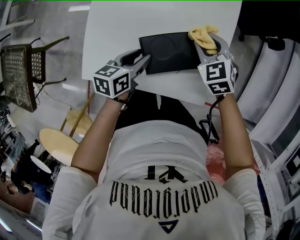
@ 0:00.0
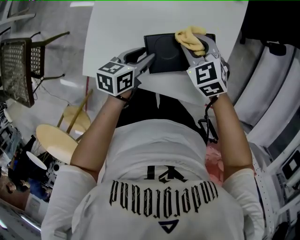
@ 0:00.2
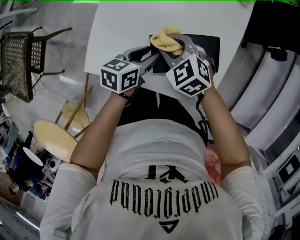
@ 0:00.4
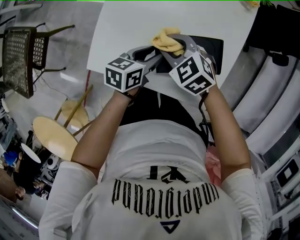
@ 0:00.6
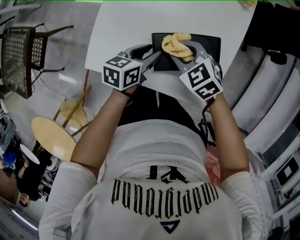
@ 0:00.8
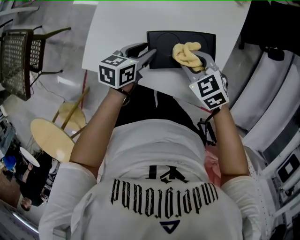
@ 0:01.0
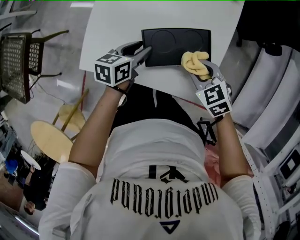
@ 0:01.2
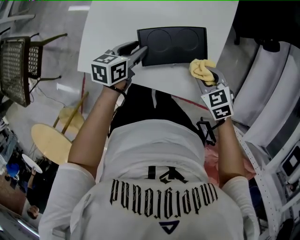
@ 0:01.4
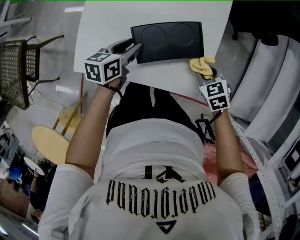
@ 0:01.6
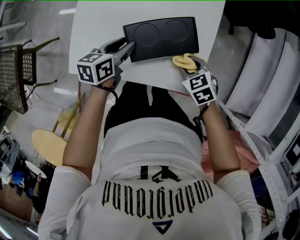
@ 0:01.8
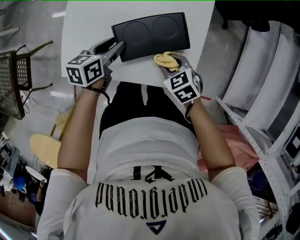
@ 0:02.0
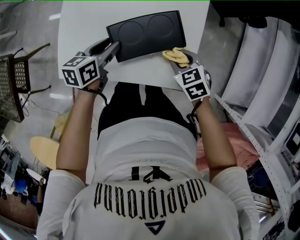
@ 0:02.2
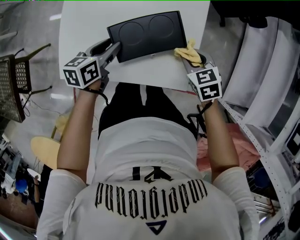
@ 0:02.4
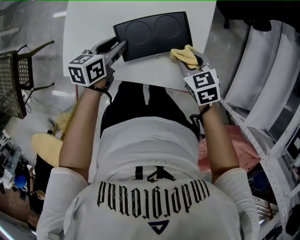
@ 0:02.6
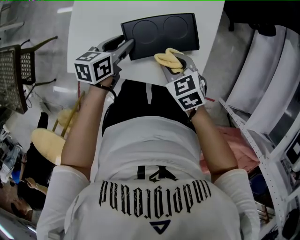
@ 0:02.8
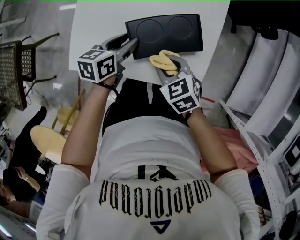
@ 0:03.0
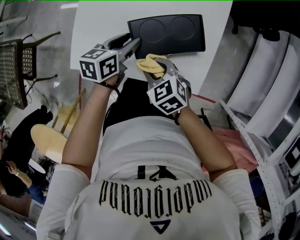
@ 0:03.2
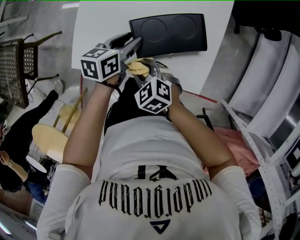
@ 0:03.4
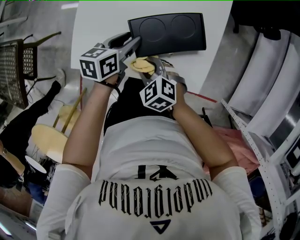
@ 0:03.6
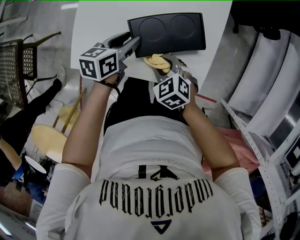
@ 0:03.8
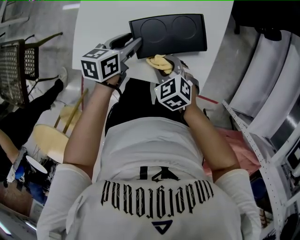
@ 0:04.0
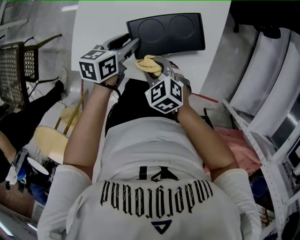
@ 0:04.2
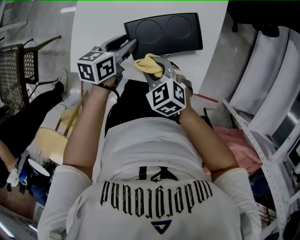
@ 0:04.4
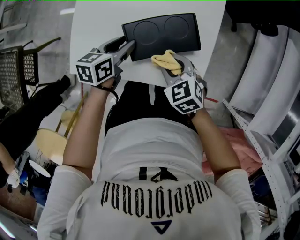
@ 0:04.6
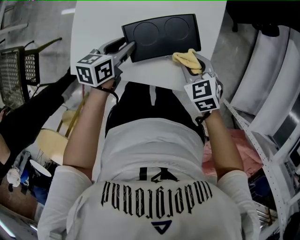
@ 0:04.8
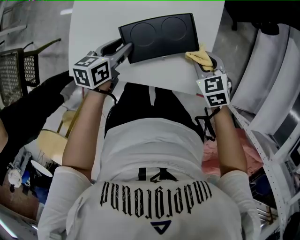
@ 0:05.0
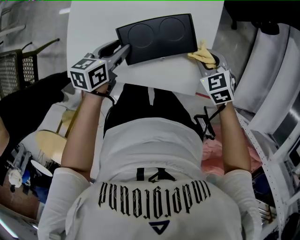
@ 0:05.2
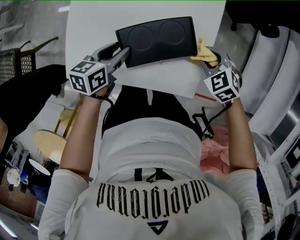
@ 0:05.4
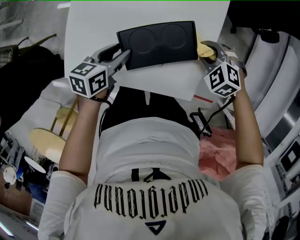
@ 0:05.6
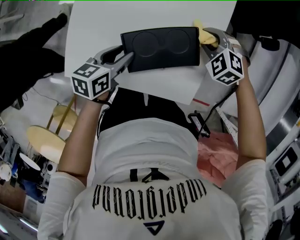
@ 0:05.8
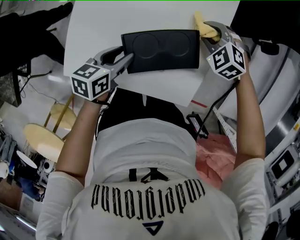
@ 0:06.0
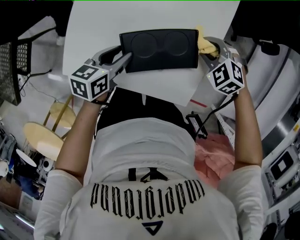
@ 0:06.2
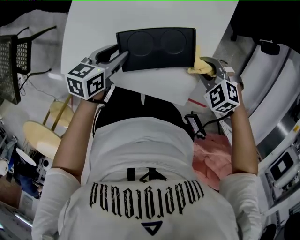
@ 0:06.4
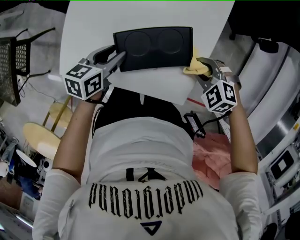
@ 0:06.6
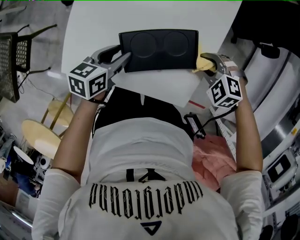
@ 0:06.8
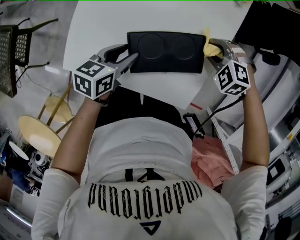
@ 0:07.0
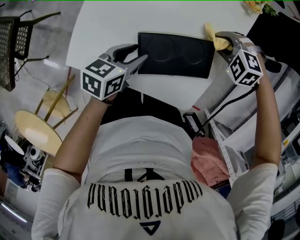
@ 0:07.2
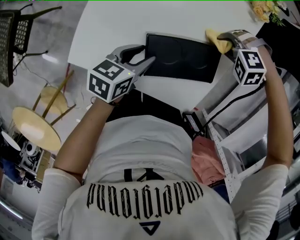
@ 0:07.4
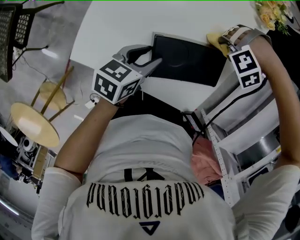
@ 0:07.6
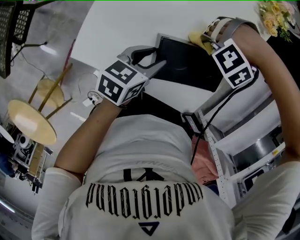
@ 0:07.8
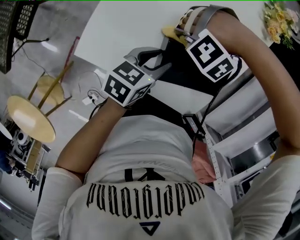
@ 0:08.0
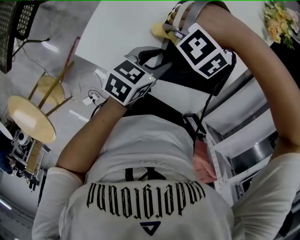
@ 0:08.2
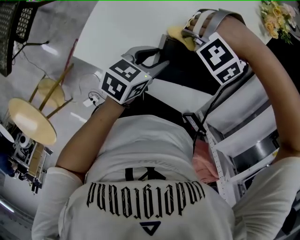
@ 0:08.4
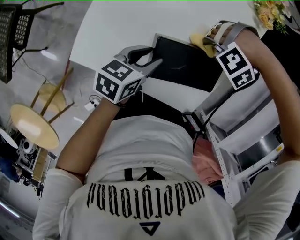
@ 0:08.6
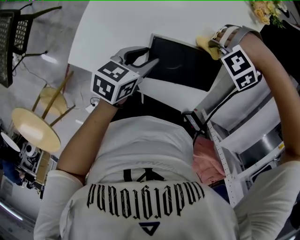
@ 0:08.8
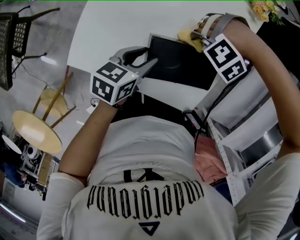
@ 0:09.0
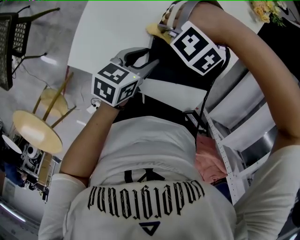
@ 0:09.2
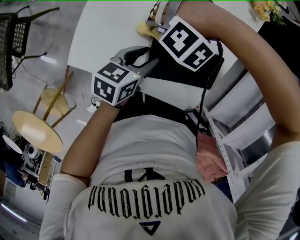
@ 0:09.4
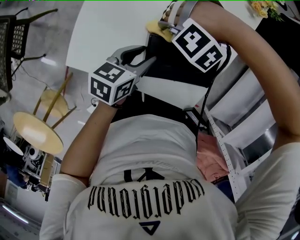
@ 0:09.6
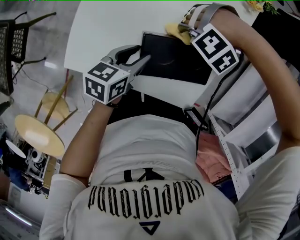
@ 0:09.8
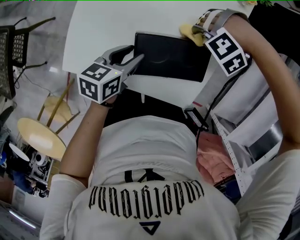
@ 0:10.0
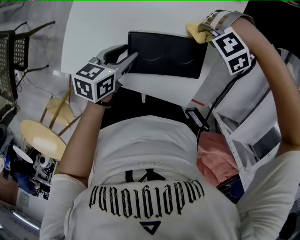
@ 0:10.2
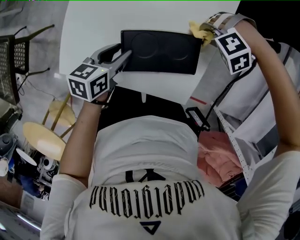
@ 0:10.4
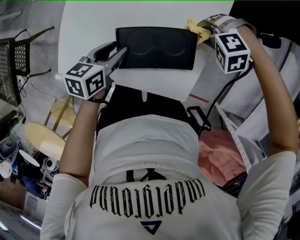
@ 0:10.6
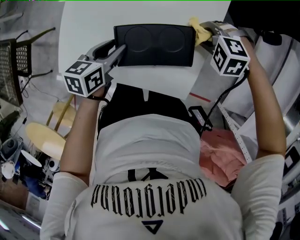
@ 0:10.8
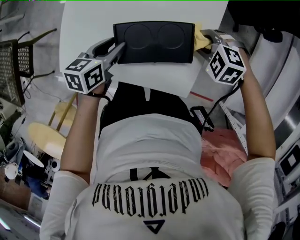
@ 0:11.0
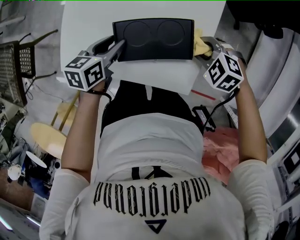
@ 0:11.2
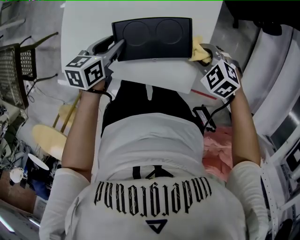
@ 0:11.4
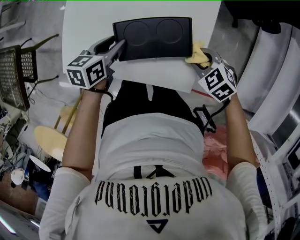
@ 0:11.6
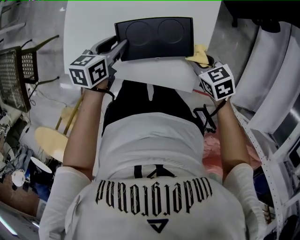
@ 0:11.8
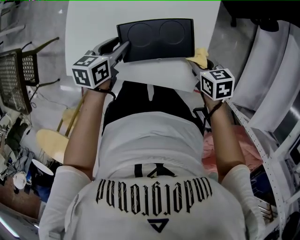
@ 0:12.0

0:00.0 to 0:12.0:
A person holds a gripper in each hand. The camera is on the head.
0:00.0 to 0:01.6: The right gripper is displaced backward by roughly 15 cm, and travels to the left and back again, approximately 15 cm each way.
0:01.6 to 0:03.0: The right gripper goes left and right, some 15 cm each way, reversing 2 times.
0:04.4 to 0:06.0: The right gripper heads forward and to the right, covering roughly 30 cm, and swivels about 30 degrees.
0:06.0 to 0:07.6: The right gripper twists about 70 degrees counterclockwise, seen from behind, while the left gripper shifts by roughly 10 cm.
0:09.0 to 0:10.4: The left gripper shifts by approximately 5 cm, while the right gripper rotates some 20 degrees.
0:10.4 to 0:12.0: The right gripper changes place by approximately 10 cm, and twists approximately 120 degrees clockwise, seen from behind.

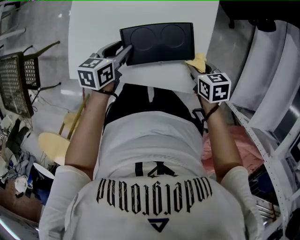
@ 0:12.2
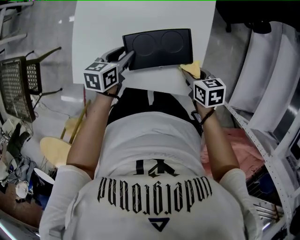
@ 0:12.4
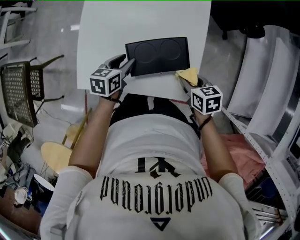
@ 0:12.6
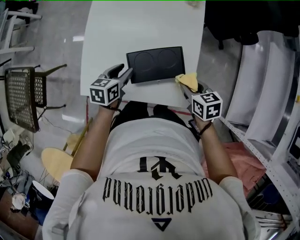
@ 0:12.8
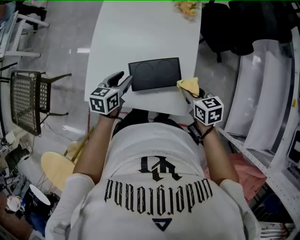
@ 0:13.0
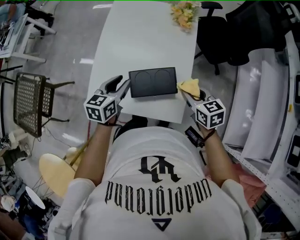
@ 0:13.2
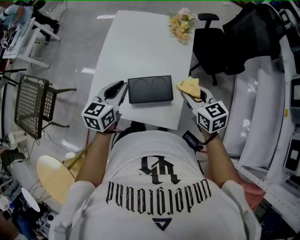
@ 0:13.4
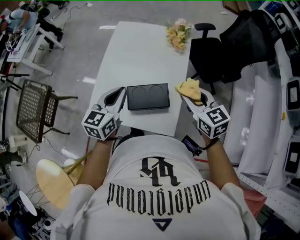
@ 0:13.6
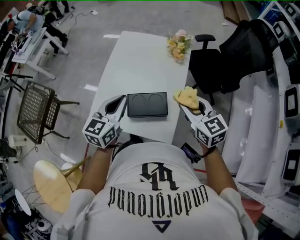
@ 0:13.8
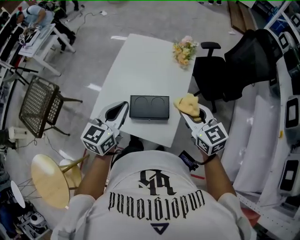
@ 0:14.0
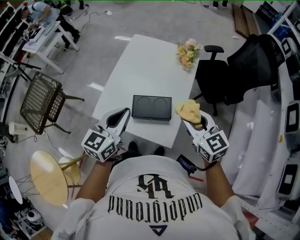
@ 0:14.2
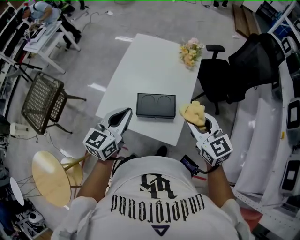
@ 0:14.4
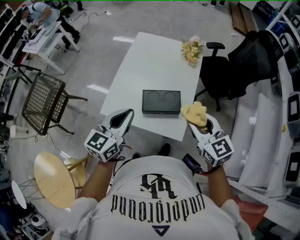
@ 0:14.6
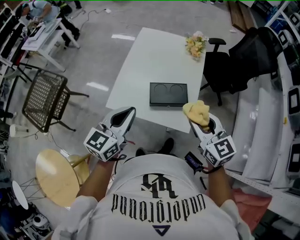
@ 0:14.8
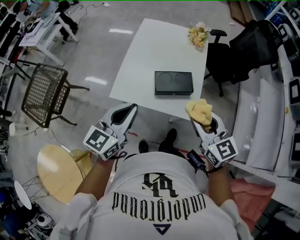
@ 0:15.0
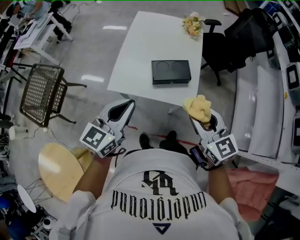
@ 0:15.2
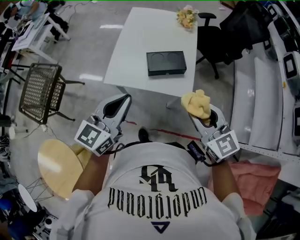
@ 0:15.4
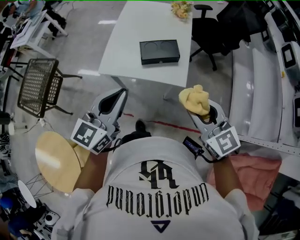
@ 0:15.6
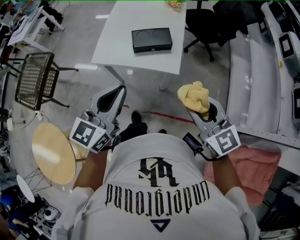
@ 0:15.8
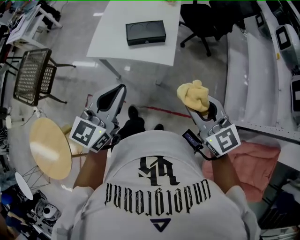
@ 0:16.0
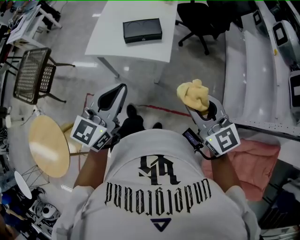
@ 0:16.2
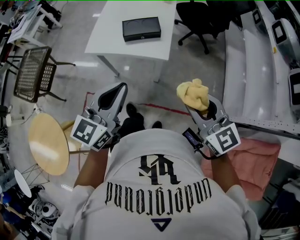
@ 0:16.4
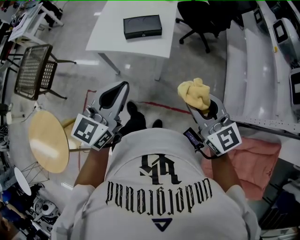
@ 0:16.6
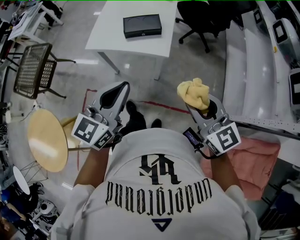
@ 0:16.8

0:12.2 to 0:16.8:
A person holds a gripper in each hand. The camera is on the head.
0:12.2 to 0:13.8: The two grippers go about 35 cm upward. The left gripper changes its angle by approximately 40 degrees, and closes. The right gripper tilts its fingers about 40 degrees upward.
0:13.8 to 0:15.2: Both grippers move backward and to the left, approximately 30 cm.
0:15.2 to 0:16.8: The grippers both shift backward and to the right by approximately 30 cm.

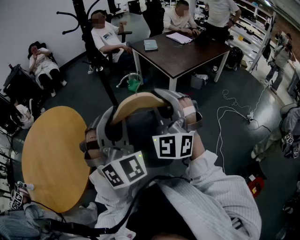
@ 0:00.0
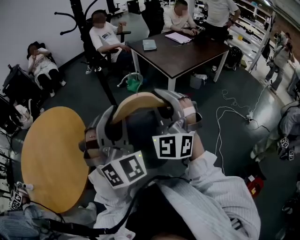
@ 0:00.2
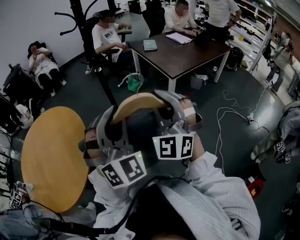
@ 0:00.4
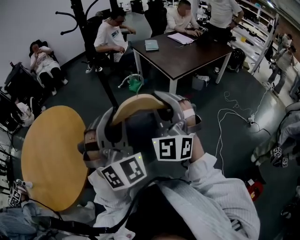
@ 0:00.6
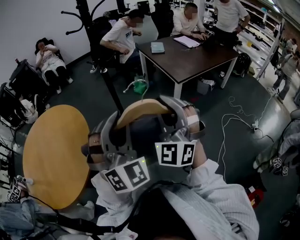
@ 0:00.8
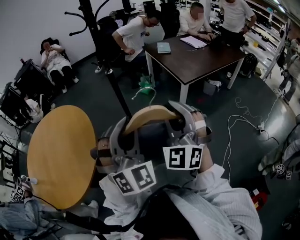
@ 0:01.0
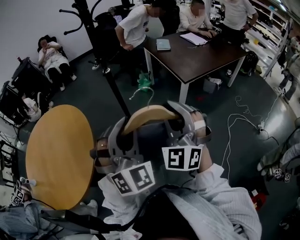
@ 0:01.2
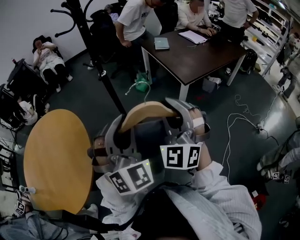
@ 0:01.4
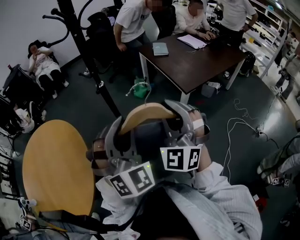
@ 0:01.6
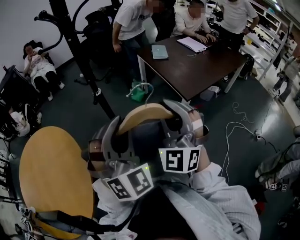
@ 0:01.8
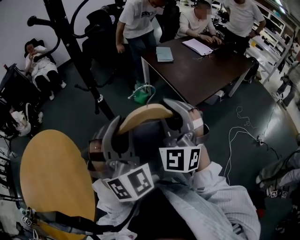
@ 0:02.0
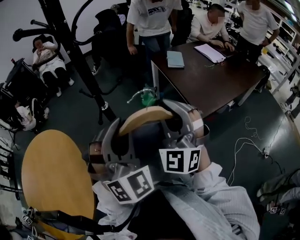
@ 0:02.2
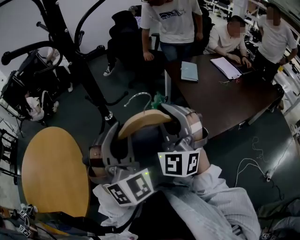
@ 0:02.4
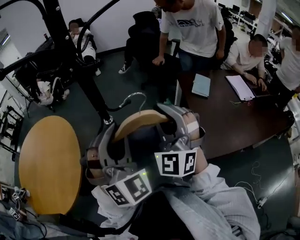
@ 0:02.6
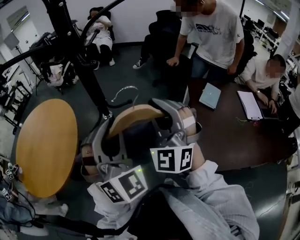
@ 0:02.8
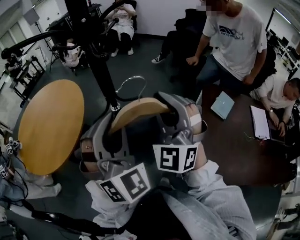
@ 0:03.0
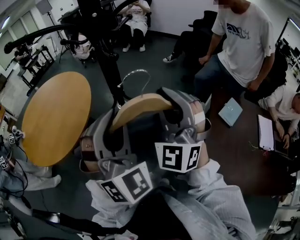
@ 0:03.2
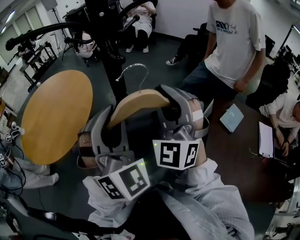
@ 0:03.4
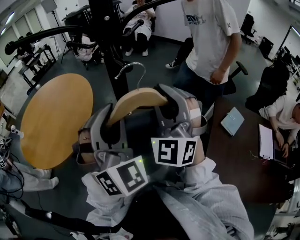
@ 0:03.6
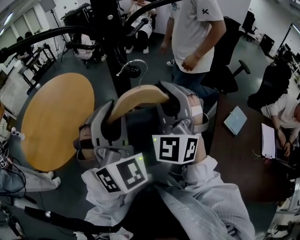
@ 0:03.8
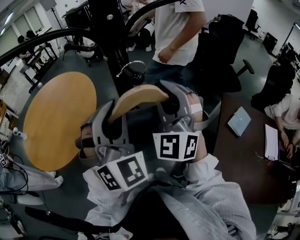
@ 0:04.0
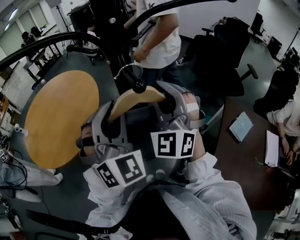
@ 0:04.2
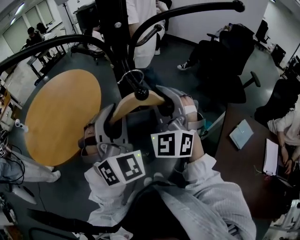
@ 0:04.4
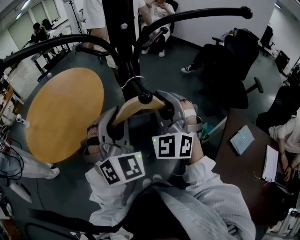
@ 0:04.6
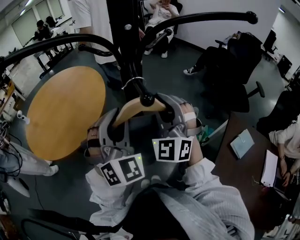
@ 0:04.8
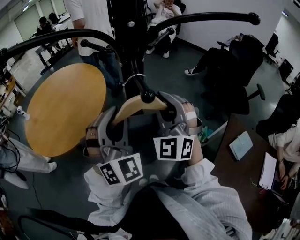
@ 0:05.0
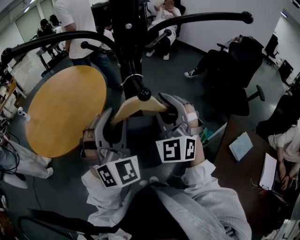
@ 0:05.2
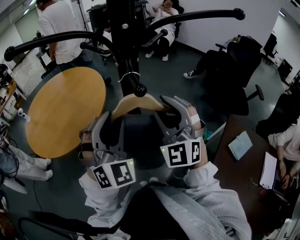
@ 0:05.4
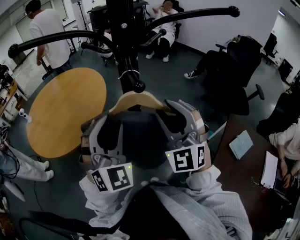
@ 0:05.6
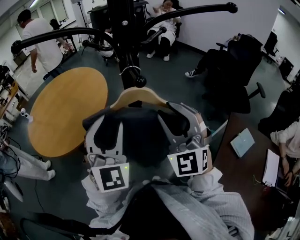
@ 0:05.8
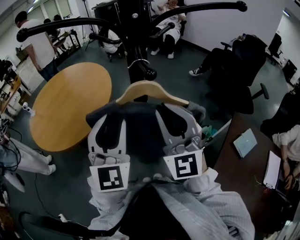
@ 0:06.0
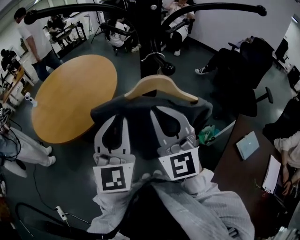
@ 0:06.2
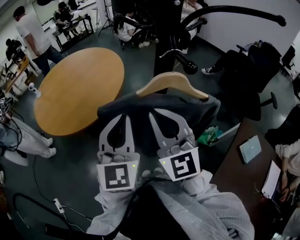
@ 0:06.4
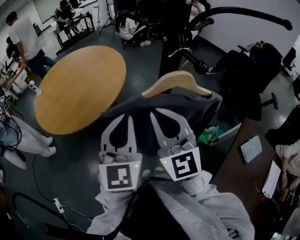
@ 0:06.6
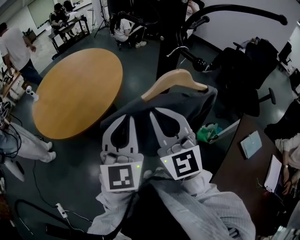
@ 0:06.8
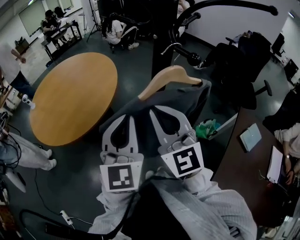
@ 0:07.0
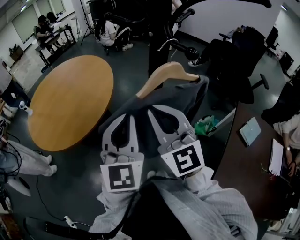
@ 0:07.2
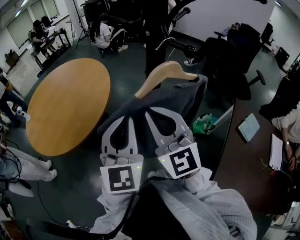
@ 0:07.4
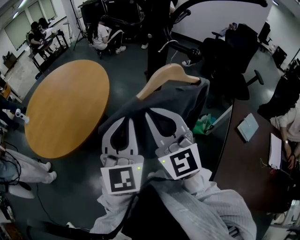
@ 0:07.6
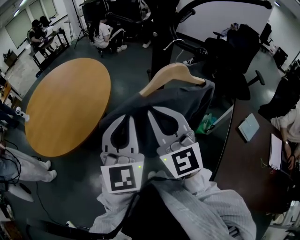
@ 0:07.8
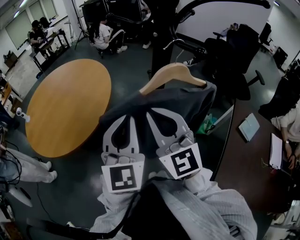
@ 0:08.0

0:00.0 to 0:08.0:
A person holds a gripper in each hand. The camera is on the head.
0:00.0 to 0:01.6: Both grippers travel together forward, roughly 20 cm.
0:01.6 to 0:03.2: The left gripper changes place by about 35 cm, and changes its angle by about 60 degrees; the right gripper changes place by roughly 40 cm, and rotates roughly 50 degrees.
0:03.2 to 0:04.8: The two grippers go some 15 cm forward.
0:04.8 to 0:06.4: Both grippers move to the left and backward, about 10 cm. The left gripper twists about 40 degrees counterclockwise, seen from behind; the right gripper swivels roughly 40 degrees, and opens, then closes again.
0:06.4 to 0:08.0: There are only small adjustments of the grippers.
